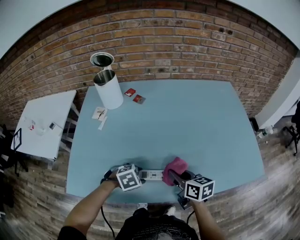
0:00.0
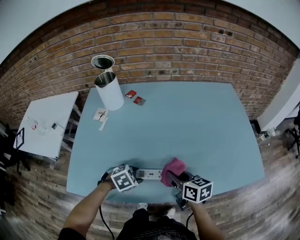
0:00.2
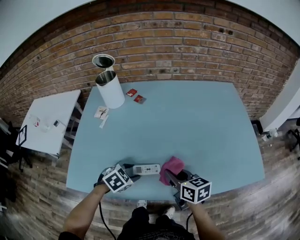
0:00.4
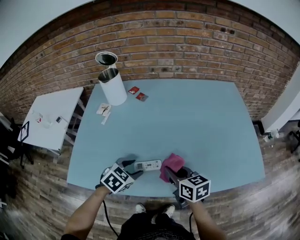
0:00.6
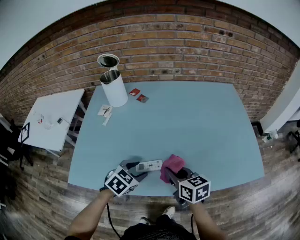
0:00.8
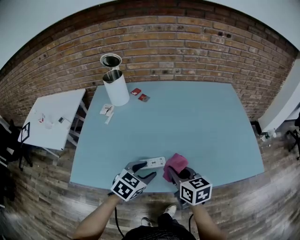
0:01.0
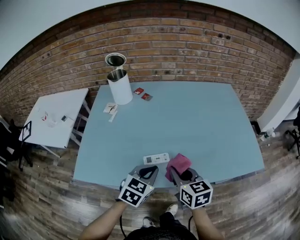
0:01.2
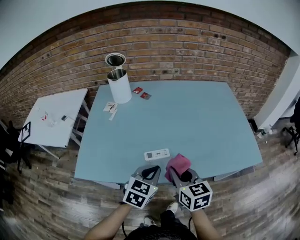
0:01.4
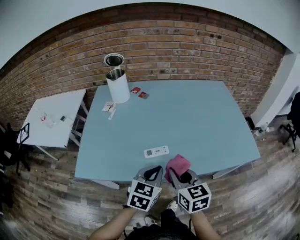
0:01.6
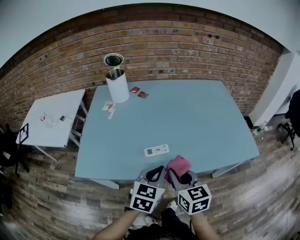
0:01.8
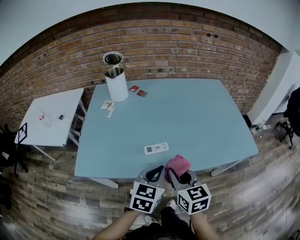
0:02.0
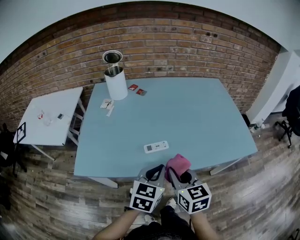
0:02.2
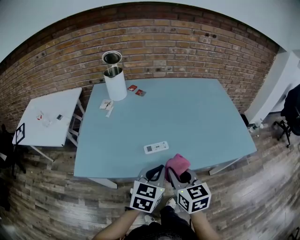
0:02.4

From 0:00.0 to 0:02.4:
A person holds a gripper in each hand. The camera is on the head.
From 0:00.0 to 0:01.2: The right gripper is displaced backward and upward by approximately 10 cm; the left gripper heads upward, covering some 15 cm, points its fingers about 40 degrees further upward, and closes its fingers.
From 0:01.2 to 0:02.4: The two grippers go roughly 10 cm backward.

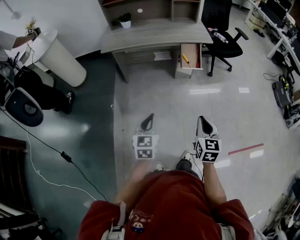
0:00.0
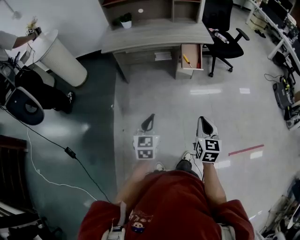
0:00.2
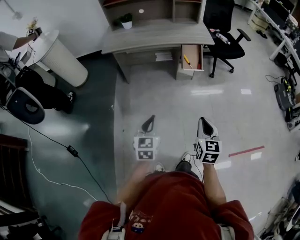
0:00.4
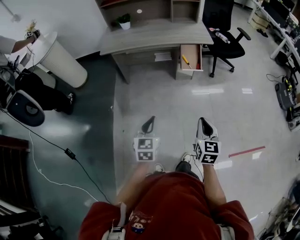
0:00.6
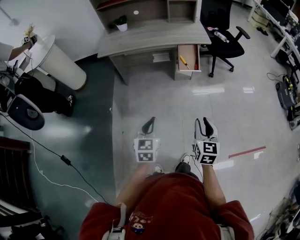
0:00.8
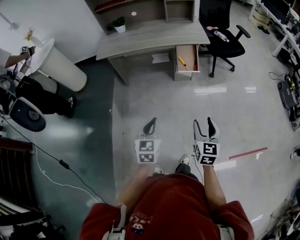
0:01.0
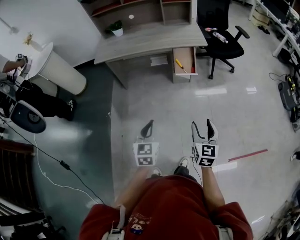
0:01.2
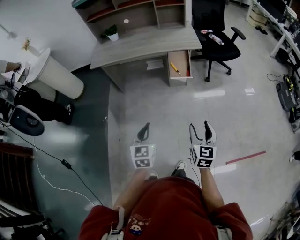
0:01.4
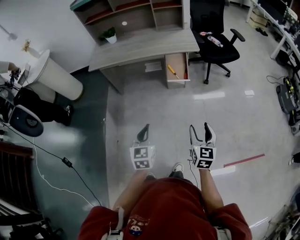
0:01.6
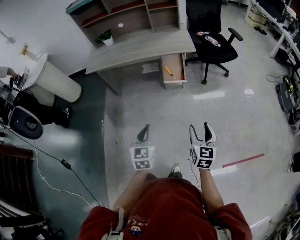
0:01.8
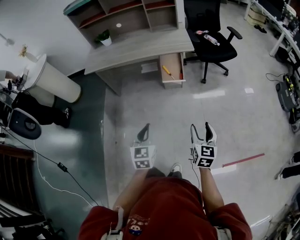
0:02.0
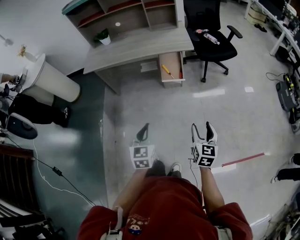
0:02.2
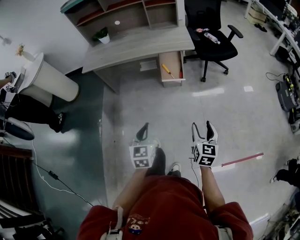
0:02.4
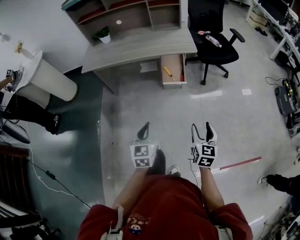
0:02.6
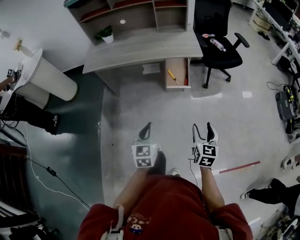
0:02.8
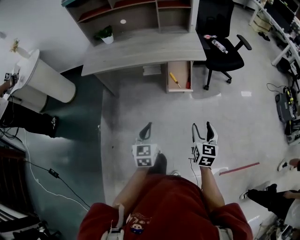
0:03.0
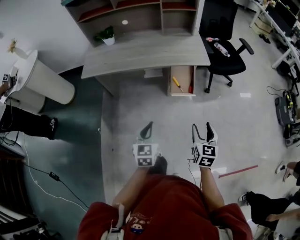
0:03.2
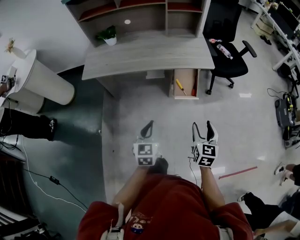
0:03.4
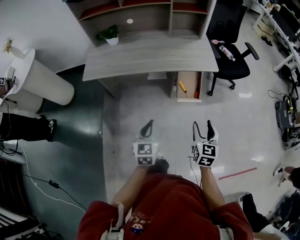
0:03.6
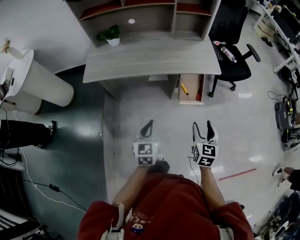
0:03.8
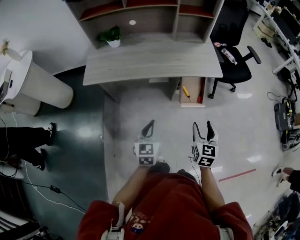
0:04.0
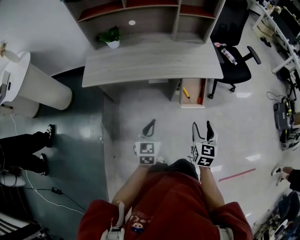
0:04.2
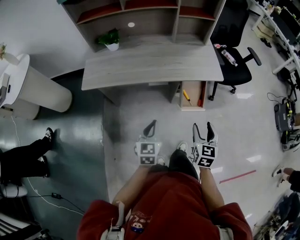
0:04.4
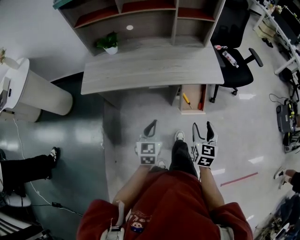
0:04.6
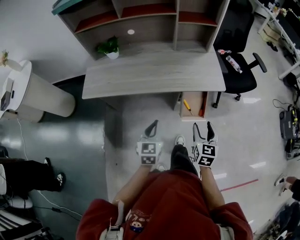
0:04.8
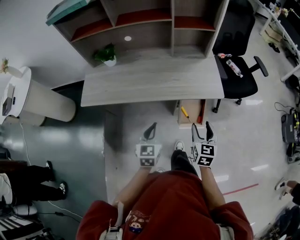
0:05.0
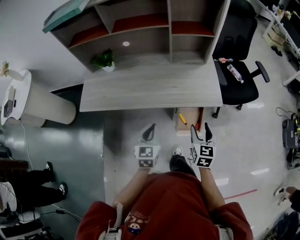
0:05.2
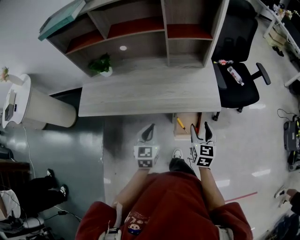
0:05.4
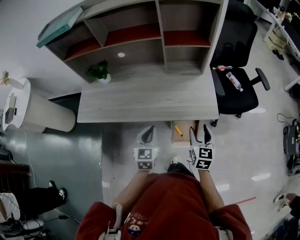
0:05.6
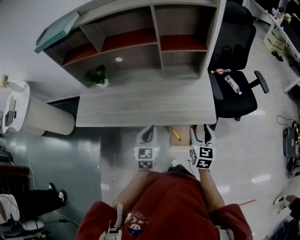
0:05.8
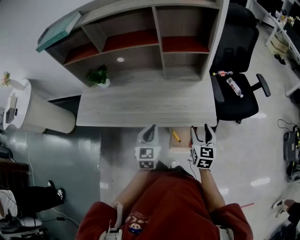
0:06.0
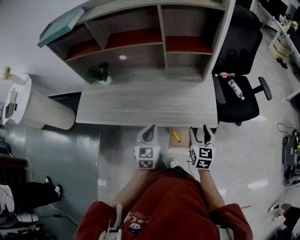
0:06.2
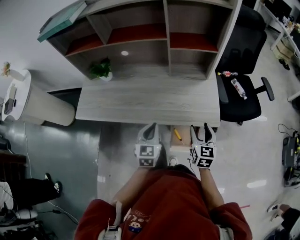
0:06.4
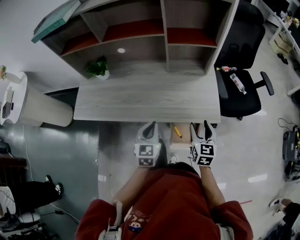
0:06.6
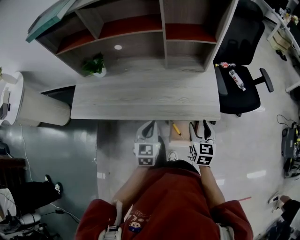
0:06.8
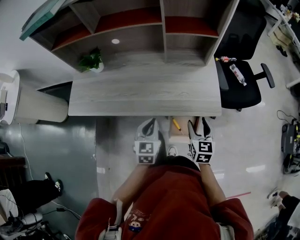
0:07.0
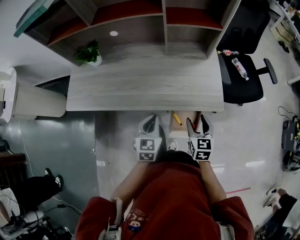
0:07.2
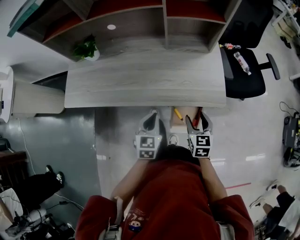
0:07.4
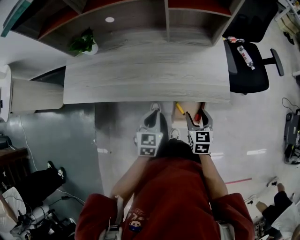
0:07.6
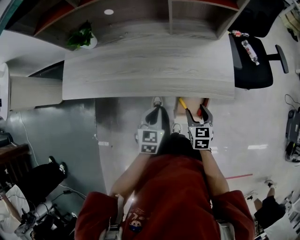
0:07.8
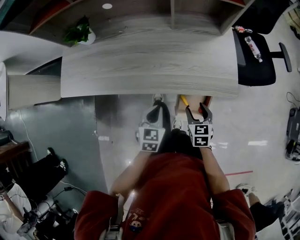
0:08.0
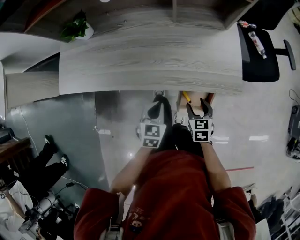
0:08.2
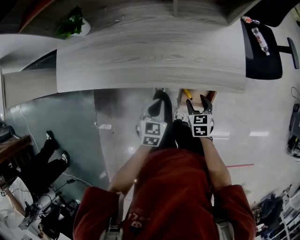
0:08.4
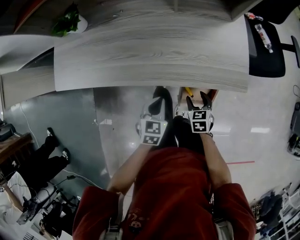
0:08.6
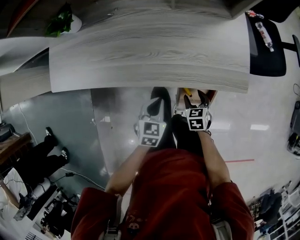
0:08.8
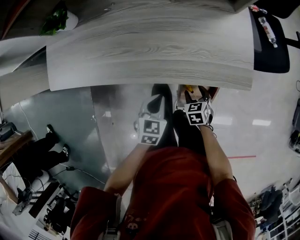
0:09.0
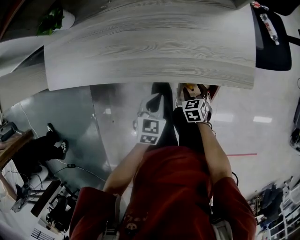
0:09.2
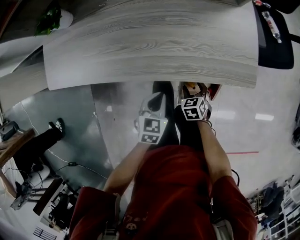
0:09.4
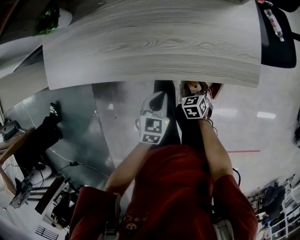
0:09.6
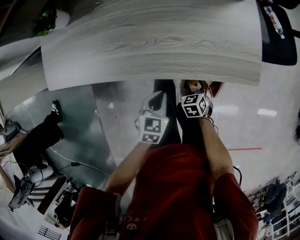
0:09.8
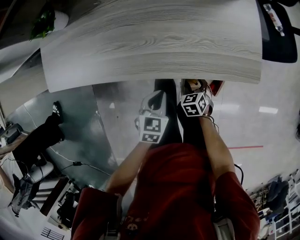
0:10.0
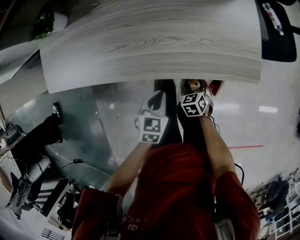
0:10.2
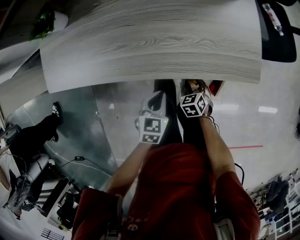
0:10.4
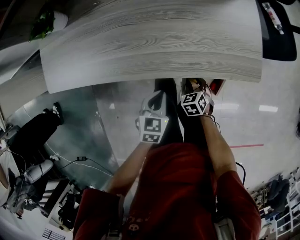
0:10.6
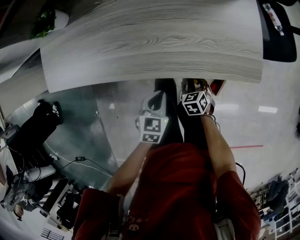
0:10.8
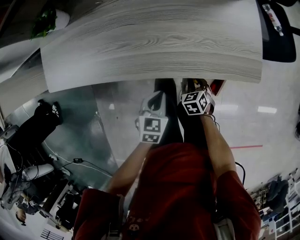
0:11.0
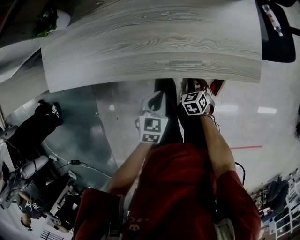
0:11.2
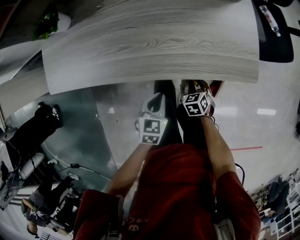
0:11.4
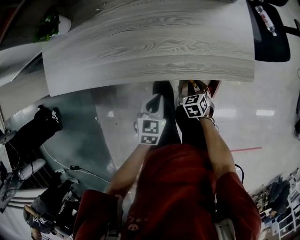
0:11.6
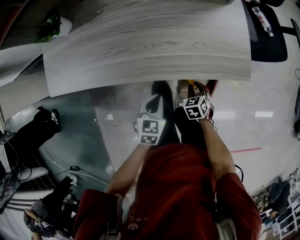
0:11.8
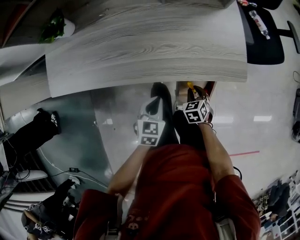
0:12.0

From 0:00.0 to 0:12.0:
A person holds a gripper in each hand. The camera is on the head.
From 0:00.0 to 0:01.6: The grippers both shift to the right and forward by about 20 cm. The right gripper opens up.
From 0:01.6 to 0:03.0: The grippers both shift forward by some 15 cm.
From 0:03.0 to 0:04.4: The grippers both shift forward and to the left by about 25 cm.
From 0:04.4 to 0:06.0: Both grippers move forward and to the right, about 35 cm.
From 0:06.0 to 0:07.6: The left gripper moves downward, approximately 15 cm; the right gripper goes about 15 cm downward and to the left.
From 0:07.6 to 0:09.0: The right gripper goes about 20 cm downward, and swivels roughly 20 degrees, while the left gripper shifts about 15 cm downward.
From 0:09.0 to 0:10.4: The right gripper closes up.
From 0:10.4 to 0:12.0: The right gripper changes place by approximately 5 cm.

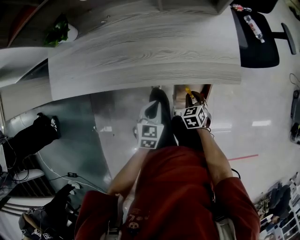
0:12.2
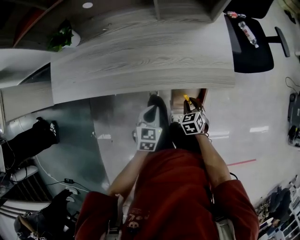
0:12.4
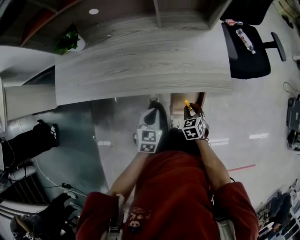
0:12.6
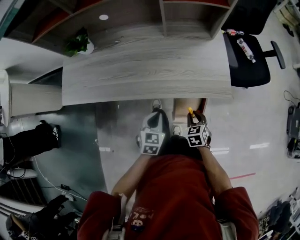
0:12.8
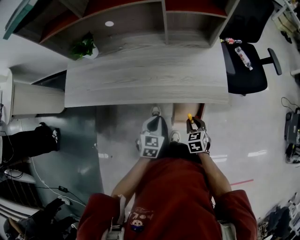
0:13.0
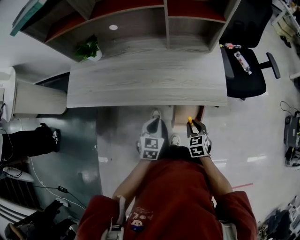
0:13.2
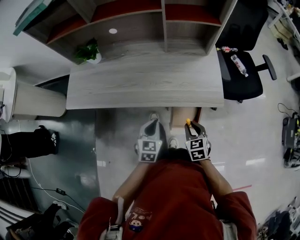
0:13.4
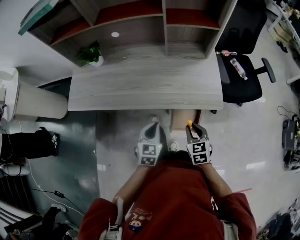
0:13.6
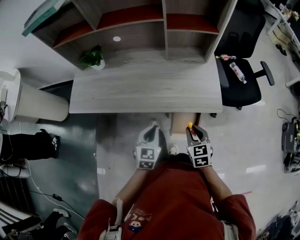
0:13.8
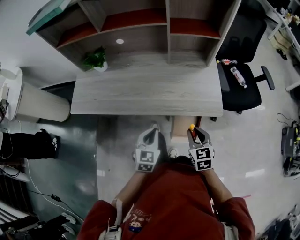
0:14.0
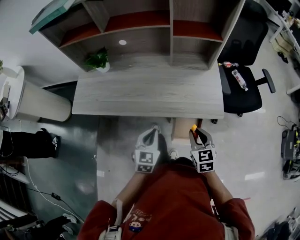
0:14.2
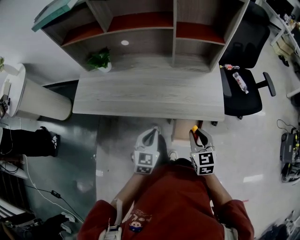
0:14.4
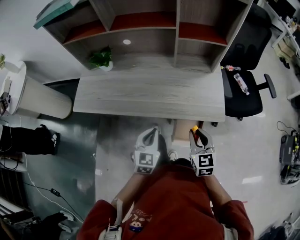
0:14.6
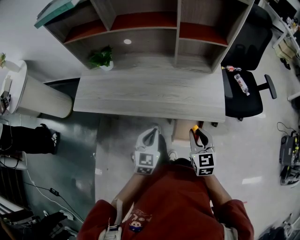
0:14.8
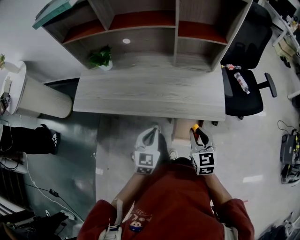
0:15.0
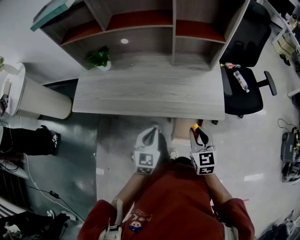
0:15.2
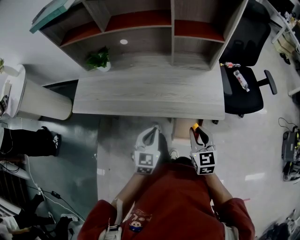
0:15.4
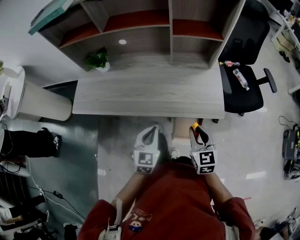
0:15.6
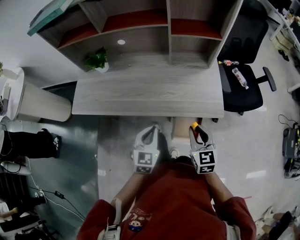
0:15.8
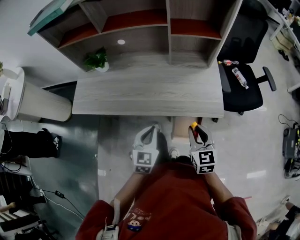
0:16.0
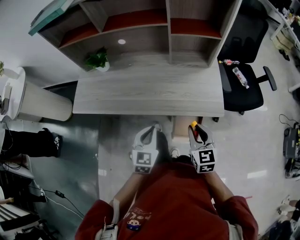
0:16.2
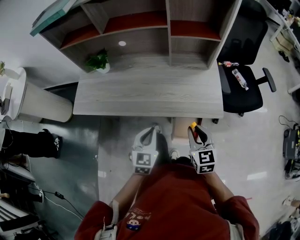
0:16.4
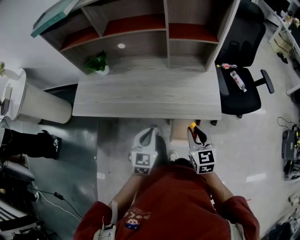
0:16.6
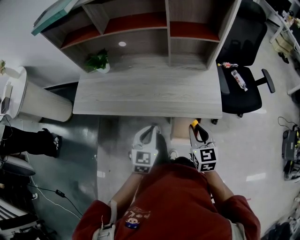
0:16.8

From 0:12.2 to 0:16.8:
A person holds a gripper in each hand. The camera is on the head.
From 0:12.2 to 0:13.8: The left gripper is displaced upward by about 15 cm; the right gripper moves upward, about 25 cm, and turns by approximately 20 degrees.
From 0:13.8 to 0:15.2: The right gripper shifts roughly 5 cm upward.
From 0:15.2 to 0:16.8: There are only small adjustments of the grippers.

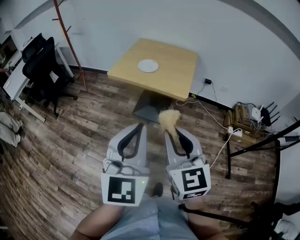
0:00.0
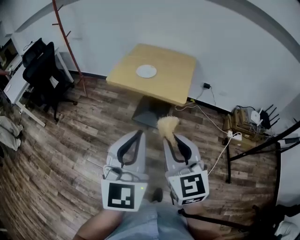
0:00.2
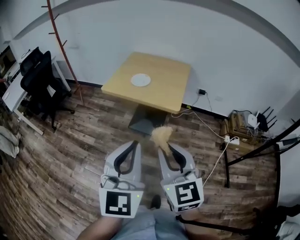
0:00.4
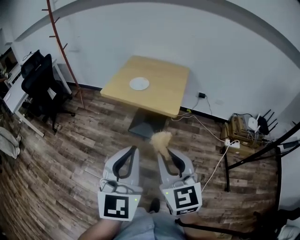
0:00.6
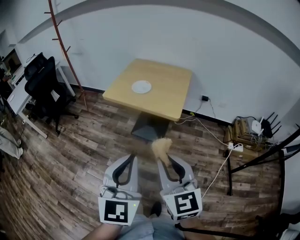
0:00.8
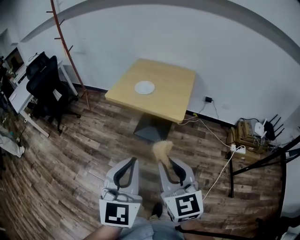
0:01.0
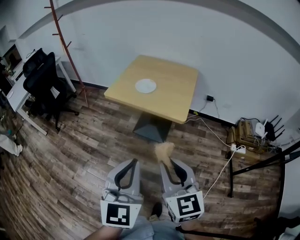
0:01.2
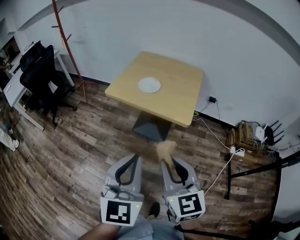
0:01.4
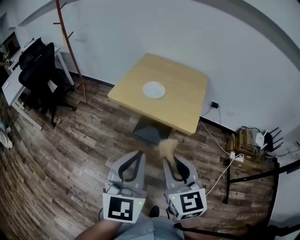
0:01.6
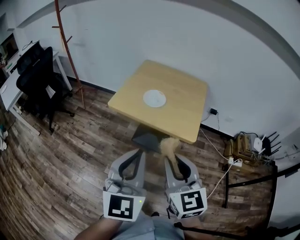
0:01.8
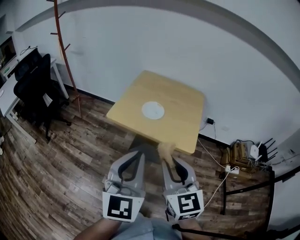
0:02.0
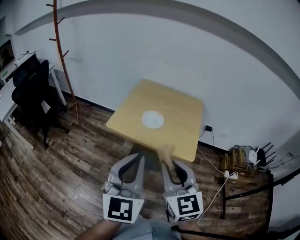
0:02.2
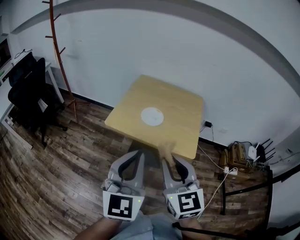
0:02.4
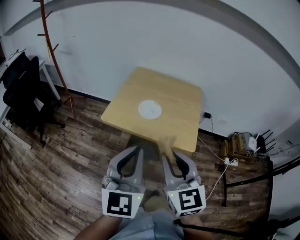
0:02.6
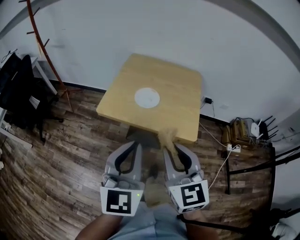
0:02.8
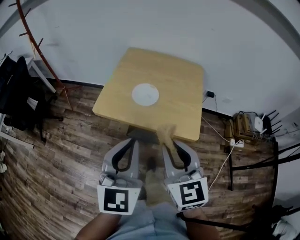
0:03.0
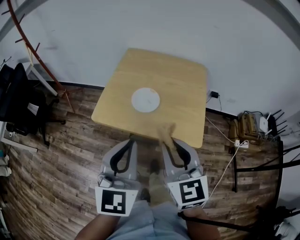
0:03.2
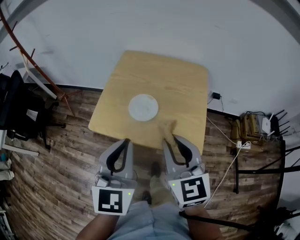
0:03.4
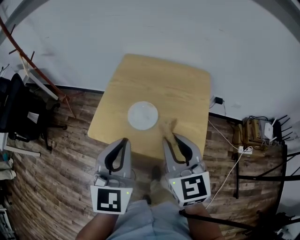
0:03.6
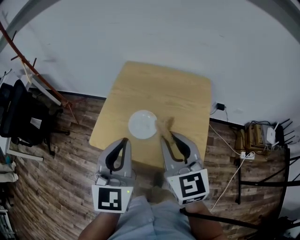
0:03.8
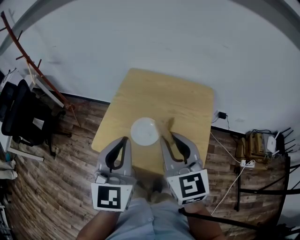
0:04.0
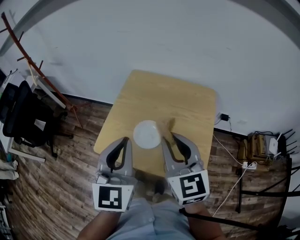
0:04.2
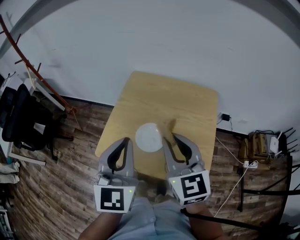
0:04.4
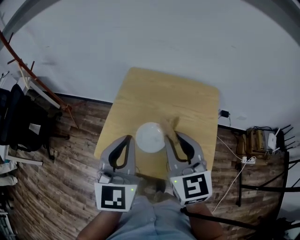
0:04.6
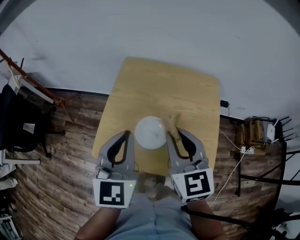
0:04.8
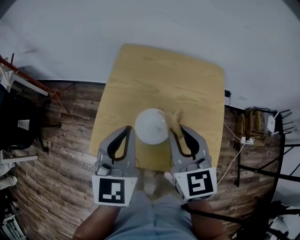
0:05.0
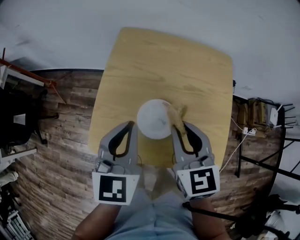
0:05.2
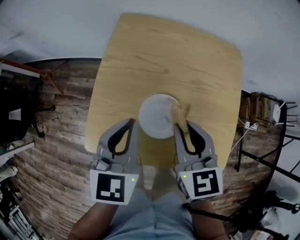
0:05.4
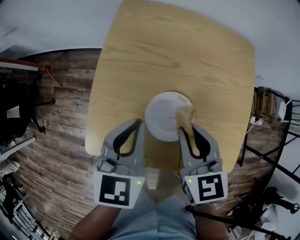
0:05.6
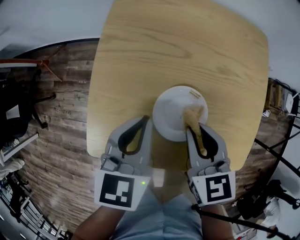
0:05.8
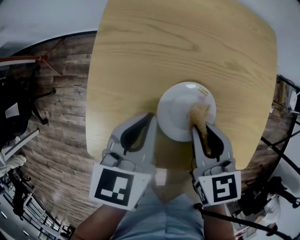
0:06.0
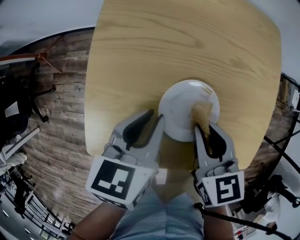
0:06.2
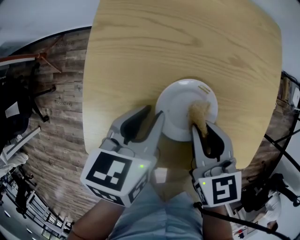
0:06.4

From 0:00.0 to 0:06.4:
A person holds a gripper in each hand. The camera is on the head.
From 0:00.0 to 0:01.6: The two grippers go roughly 15 cm forward.
From 0:01.6 to 0:03.2: Both grippers move forward, about 20 cm.
From 0:03.2 to 0:04.8: Both grippers travel together forward, roughly 25 cm.
From 0:04.8 to 0:06.4: The two grippers go roughly 25 cm downward. The right gripper swivels about 30 degrees, while the left gripper turns by about 50 degrees, and opens up.
